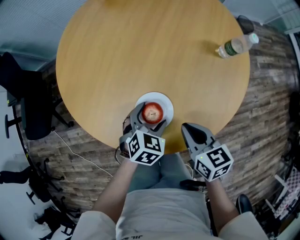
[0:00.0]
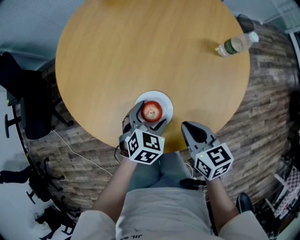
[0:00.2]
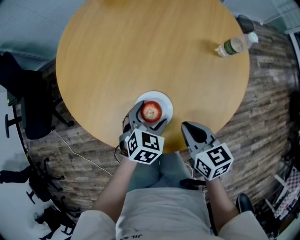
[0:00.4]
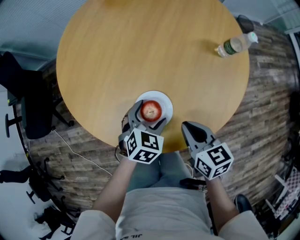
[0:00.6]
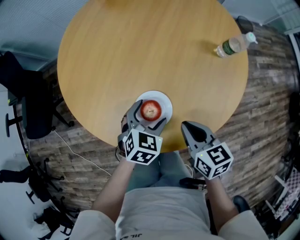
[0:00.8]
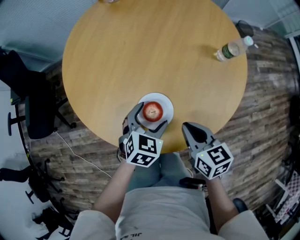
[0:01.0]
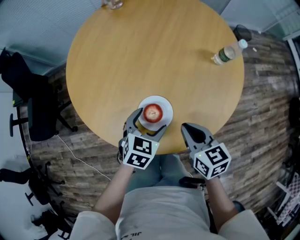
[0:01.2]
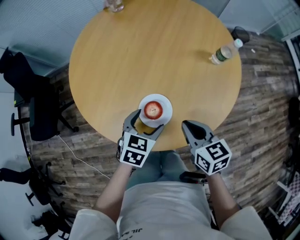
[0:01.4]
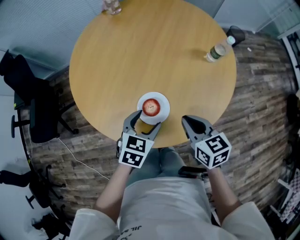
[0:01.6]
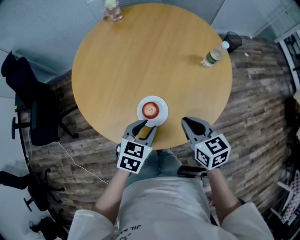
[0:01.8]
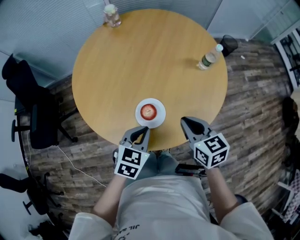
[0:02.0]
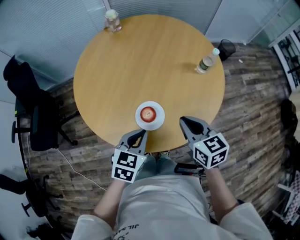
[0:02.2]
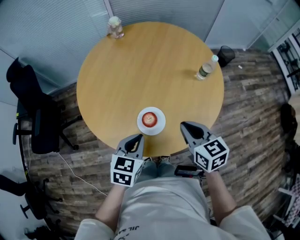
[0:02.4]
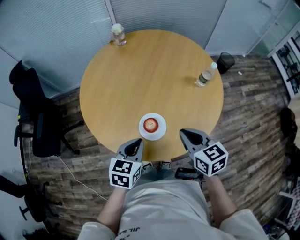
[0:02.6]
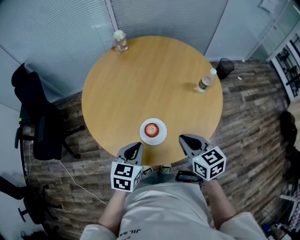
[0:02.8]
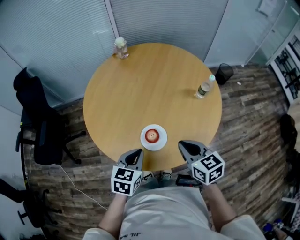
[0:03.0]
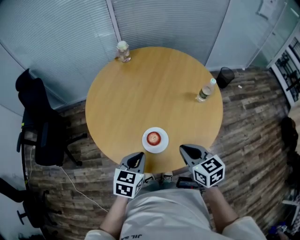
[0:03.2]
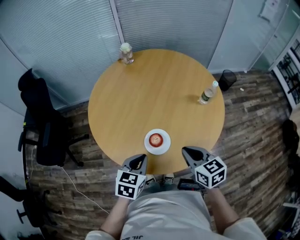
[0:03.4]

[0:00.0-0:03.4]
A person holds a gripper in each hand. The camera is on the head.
0:00.0 to 0:01.6: The right gripper travels upward by approximately 5 cm. The left gripper is displaced upward by about 10 cm.
0:01.6 to 0:03.4: The left gripper heads upward and backward, covering about 10 cm, and closes up. Meanwhile the right gripper travels upward by roughly 5 cm.

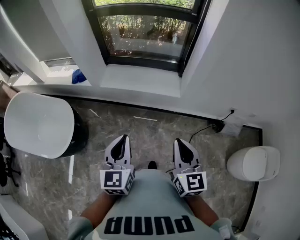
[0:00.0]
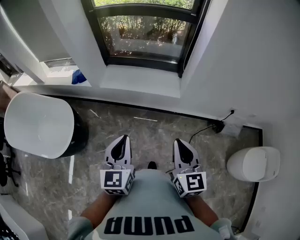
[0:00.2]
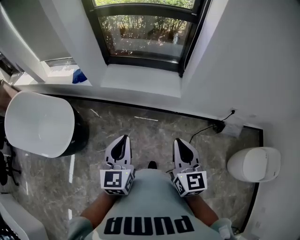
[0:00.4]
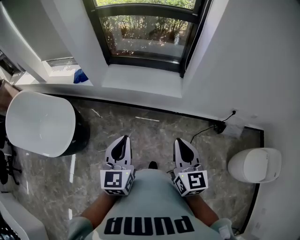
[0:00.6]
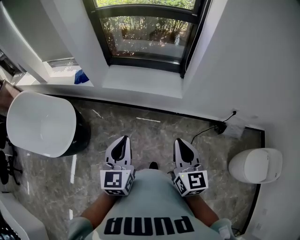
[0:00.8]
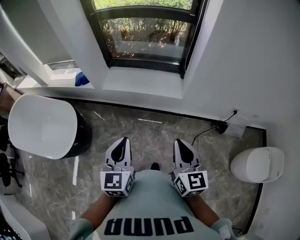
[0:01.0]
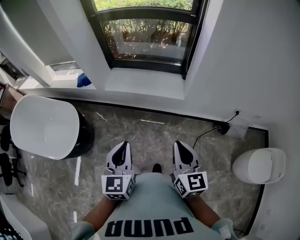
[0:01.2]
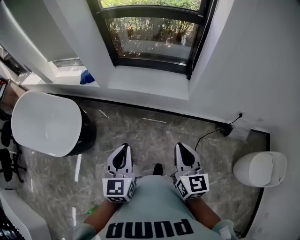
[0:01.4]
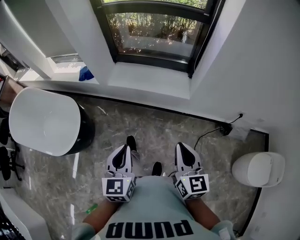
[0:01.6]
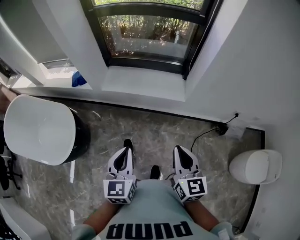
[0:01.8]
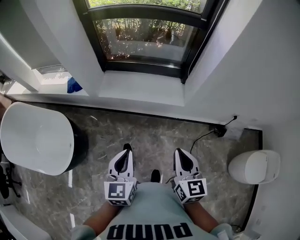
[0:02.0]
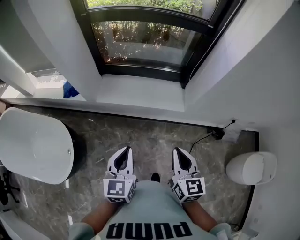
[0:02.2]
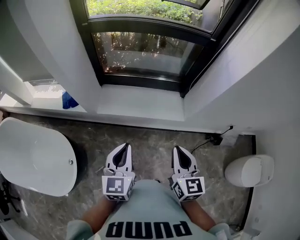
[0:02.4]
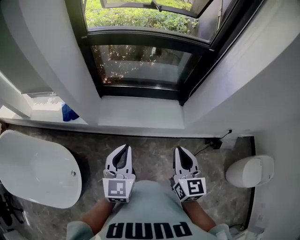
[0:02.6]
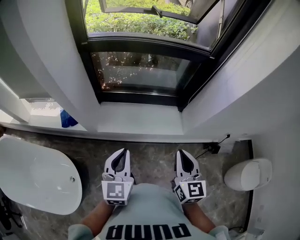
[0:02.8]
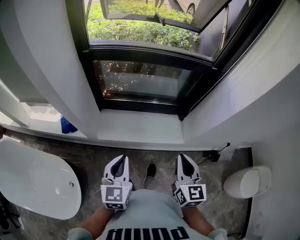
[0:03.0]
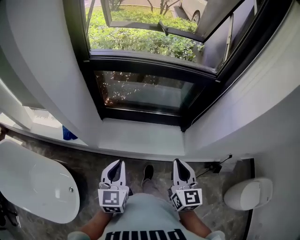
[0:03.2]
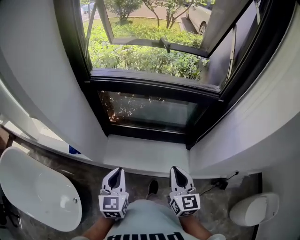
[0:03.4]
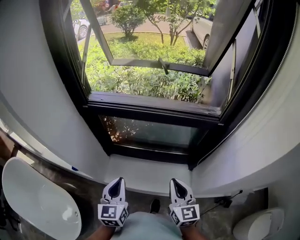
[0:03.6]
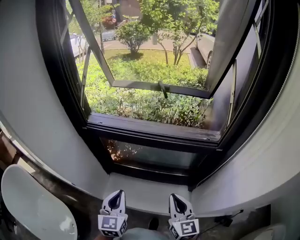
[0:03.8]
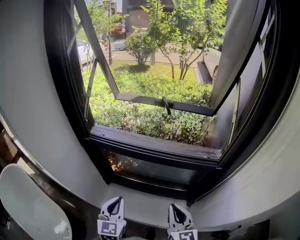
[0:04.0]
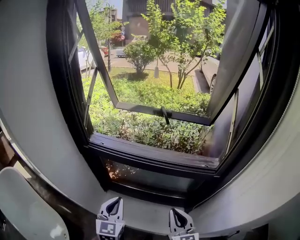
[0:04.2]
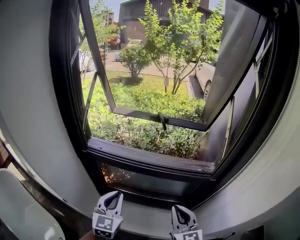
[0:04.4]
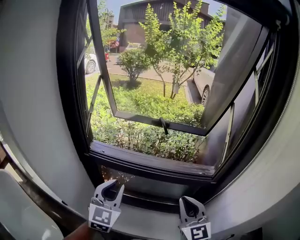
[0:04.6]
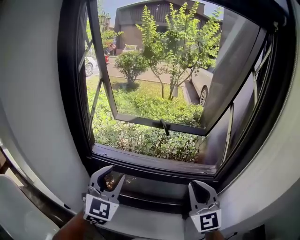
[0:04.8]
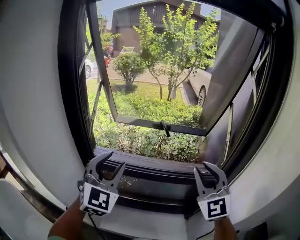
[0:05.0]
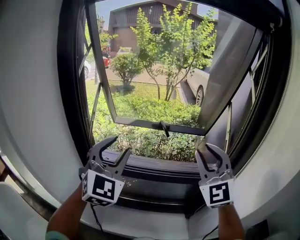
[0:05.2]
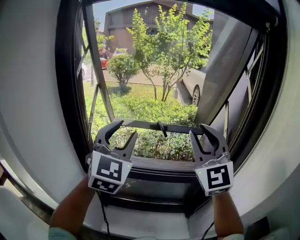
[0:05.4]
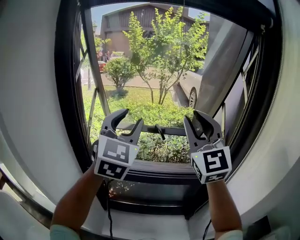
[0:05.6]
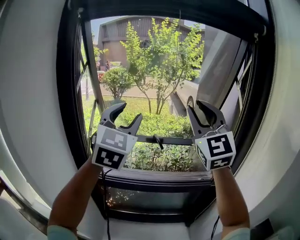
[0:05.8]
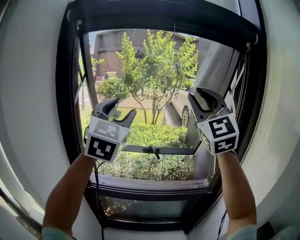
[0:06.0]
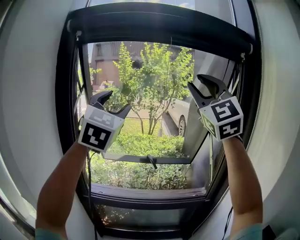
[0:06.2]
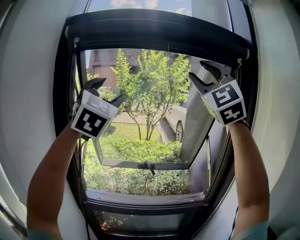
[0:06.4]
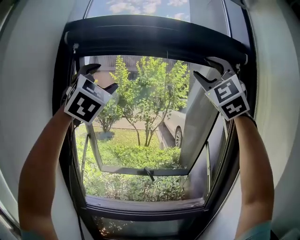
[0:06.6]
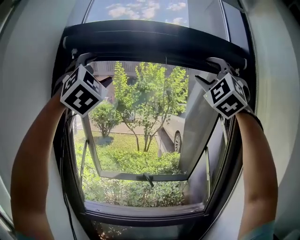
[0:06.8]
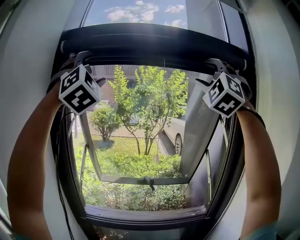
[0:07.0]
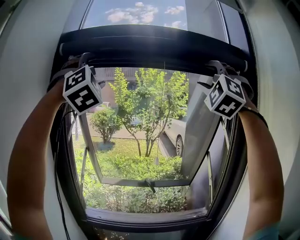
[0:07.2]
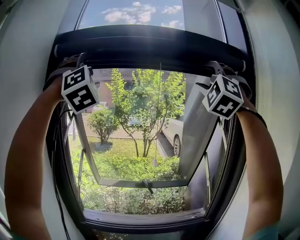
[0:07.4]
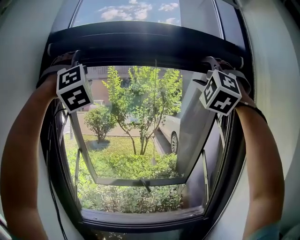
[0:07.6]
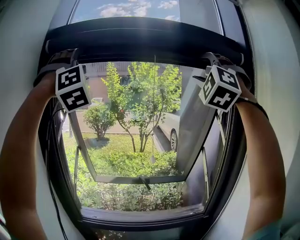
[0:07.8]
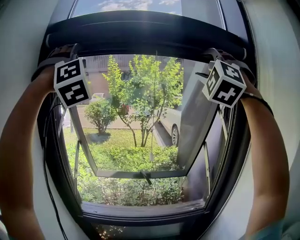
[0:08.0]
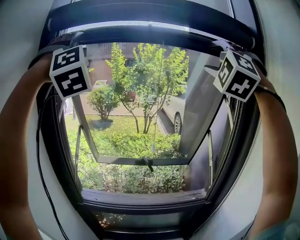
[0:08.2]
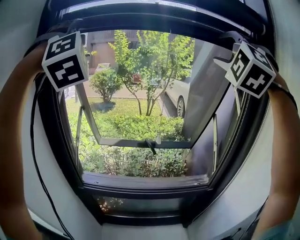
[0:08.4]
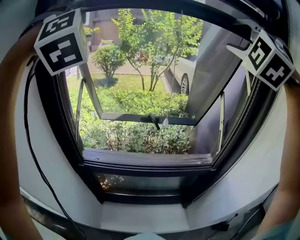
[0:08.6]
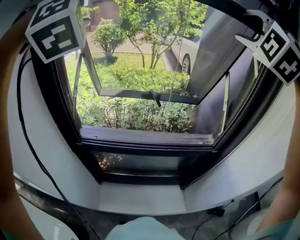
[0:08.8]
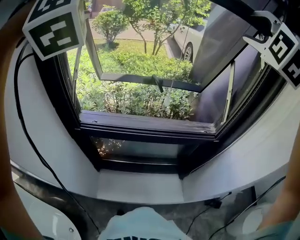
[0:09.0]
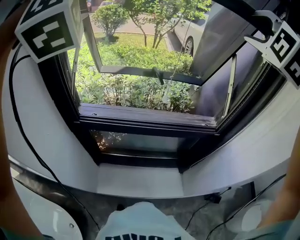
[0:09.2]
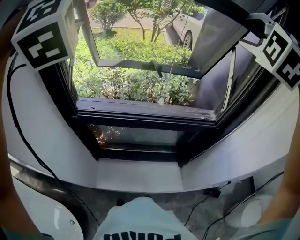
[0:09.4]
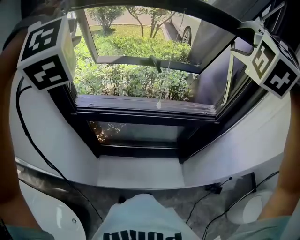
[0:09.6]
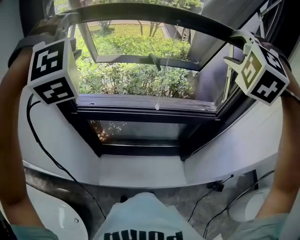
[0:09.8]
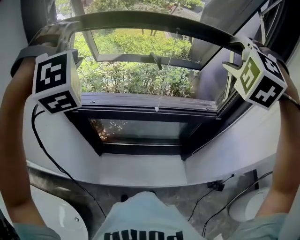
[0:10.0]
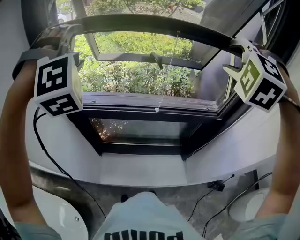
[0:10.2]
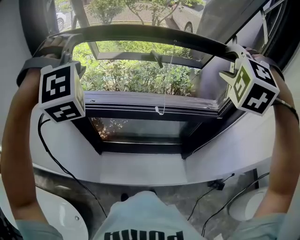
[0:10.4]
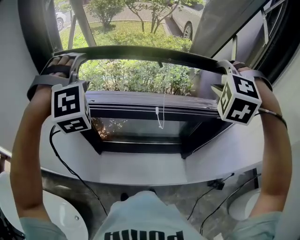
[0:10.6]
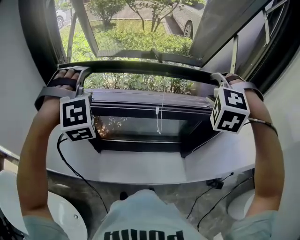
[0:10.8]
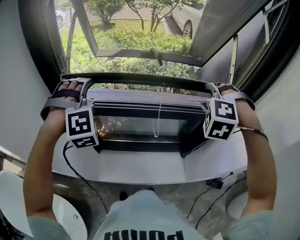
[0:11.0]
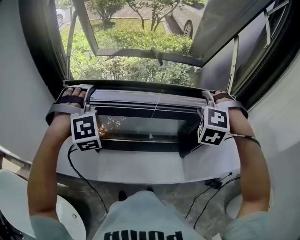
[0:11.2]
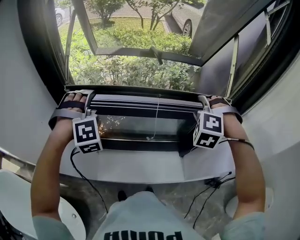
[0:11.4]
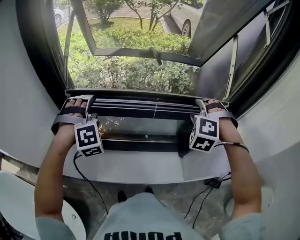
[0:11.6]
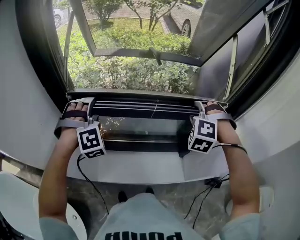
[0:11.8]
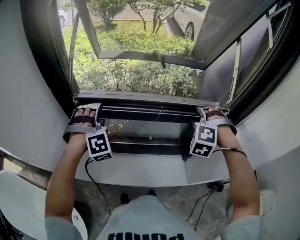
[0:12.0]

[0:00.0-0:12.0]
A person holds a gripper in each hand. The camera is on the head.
0:00.0 to 0:01.6: The grippers make only small movements.
0:01.6 to 0:03.0: Both grippers move forward and to the left, roughly 35 cm.
0:03.0 to 0:04.4: Both grippers travel together forward and upward, roughly 30 cm. The right gripper swivels about 30 degrees.
0:04.4 to 0:06.0: The grippers both shift upward by some 50 cm. The left gripper swivels approximately 30 degrees, and opens its fingers; the right gripper rotates some 40 degrees, and opens up.
0:06.0 to 0:07.6: Both grippers move upward, some 20 cm. The right gripper rotates around the line of its fingers by roughly 50 degrees, counterclockwise from behind, and opens. The left gripper rolls clockwise, seen from behind, by roughly 60 degrees, and opens its fingers.
0:07.6 to 0:09.0: The grippers both shift downward by approximately 20 cm. The right gripper changes its angle by roughly 30 degrees.
0:09.0 to 0:10.4: Both grippers travel together downward, roughly 25 cm. The right gripper turns by approximately 20 degrees. Meanwhile the left gripper turns by some 20 degrees.
0:10.4 to 0:12.0: The grippers both shift downward by roughly 25 cm.

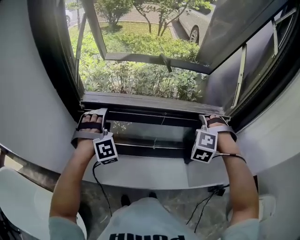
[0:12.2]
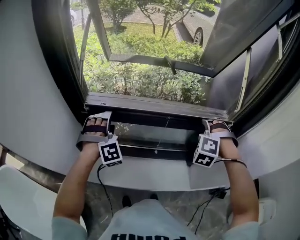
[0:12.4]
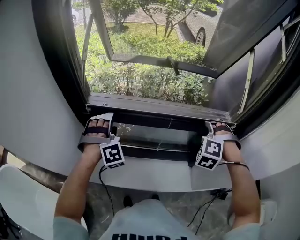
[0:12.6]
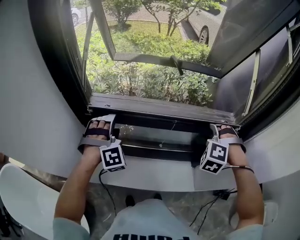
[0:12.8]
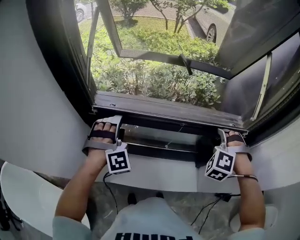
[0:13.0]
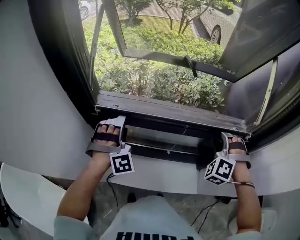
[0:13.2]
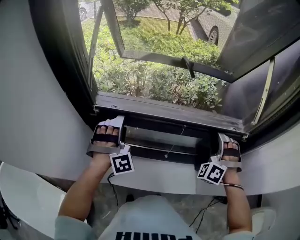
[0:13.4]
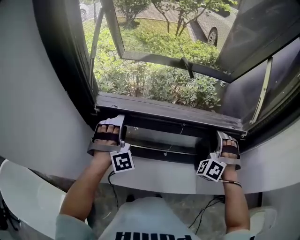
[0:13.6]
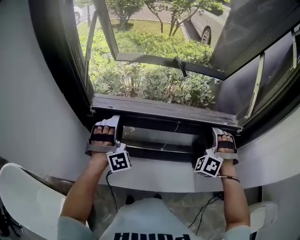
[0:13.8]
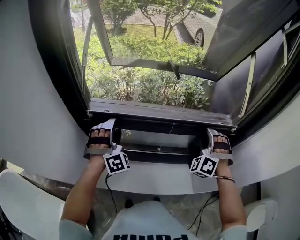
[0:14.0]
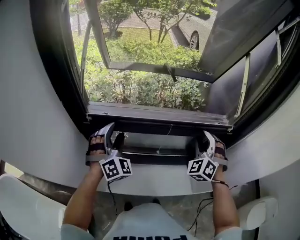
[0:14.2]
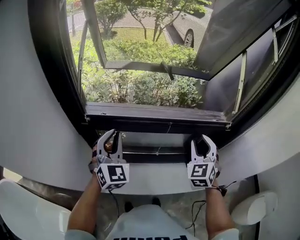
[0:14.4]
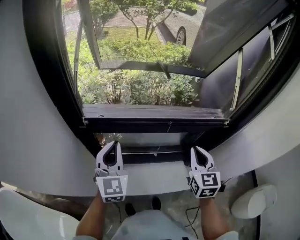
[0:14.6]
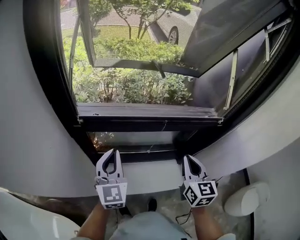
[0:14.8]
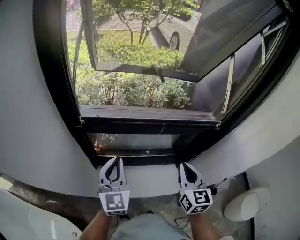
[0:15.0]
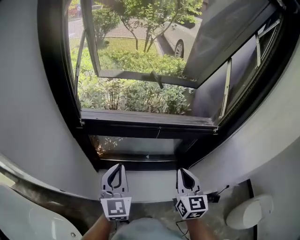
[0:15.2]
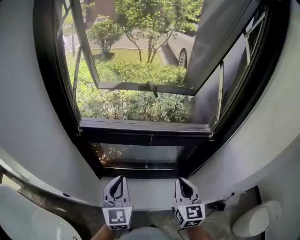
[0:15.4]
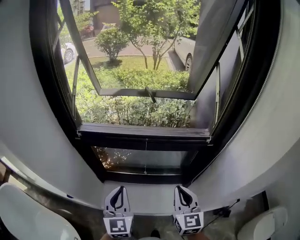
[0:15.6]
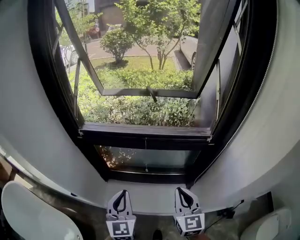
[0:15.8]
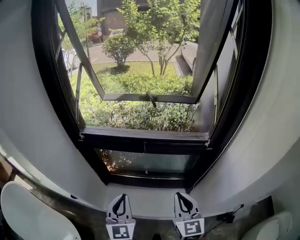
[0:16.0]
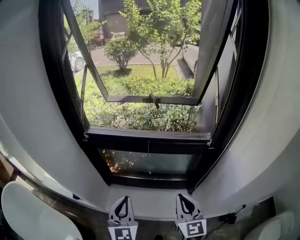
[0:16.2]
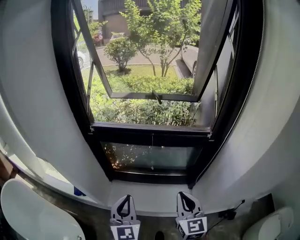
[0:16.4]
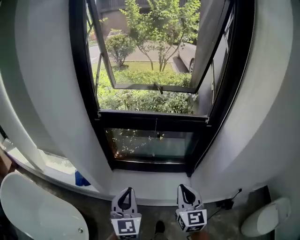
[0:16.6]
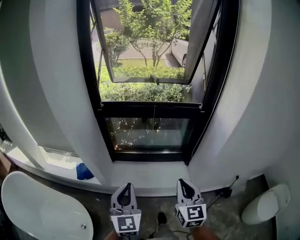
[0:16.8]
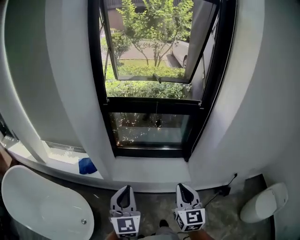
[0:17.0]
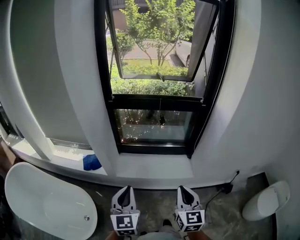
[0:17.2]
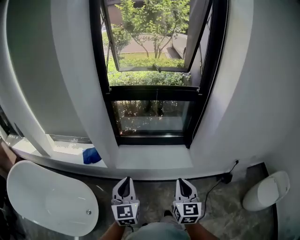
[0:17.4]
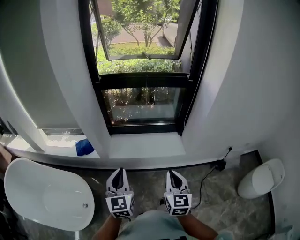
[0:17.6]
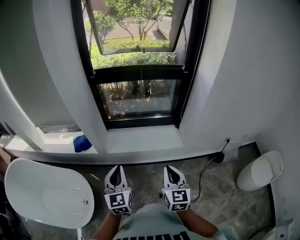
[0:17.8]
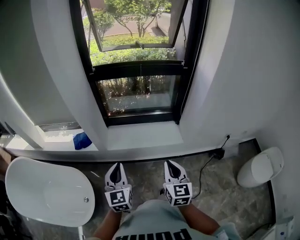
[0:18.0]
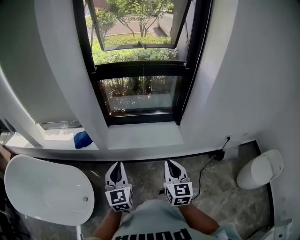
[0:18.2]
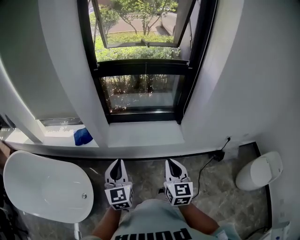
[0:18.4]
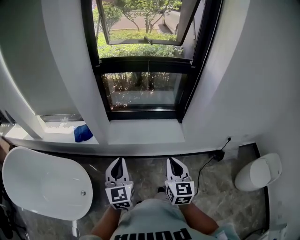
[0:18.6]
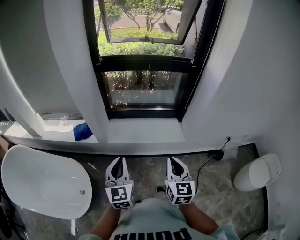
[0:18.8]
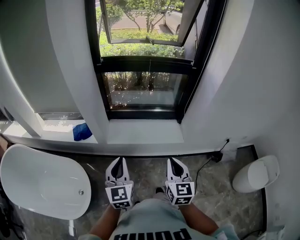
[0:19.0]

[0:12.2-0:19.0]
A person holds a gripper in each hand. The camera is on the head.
0:12.2 to 0:13.6: The right gripper changes its angle by roughly 30 degrees.
0:13.6 to 0:15.0: The left gripper travels backward by some 15 cm, rolls counterclockwise, seen from behind, by approximately 80 degrees, and closes. Meanwhile the right gripper heads backward and to the left, covering about 20 cm, rotates around the line of its fingers by some 90 degrees, clockwise from behind, and closes up.
0:15.0 to 0:16.2: The right gripper heads backward and to the right, covering roughly 10 cm, while the left gripper shifts about 20 cm backward and to the right.
0:16.2 to 0:17.6: Both grippers move backward, approximately 35 cm.
0:17.6 to 0:19.0: The grippers move only a little.

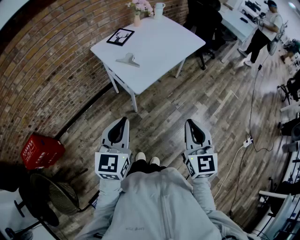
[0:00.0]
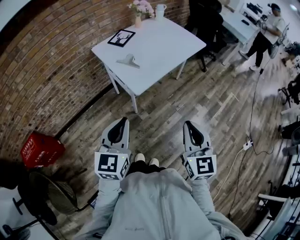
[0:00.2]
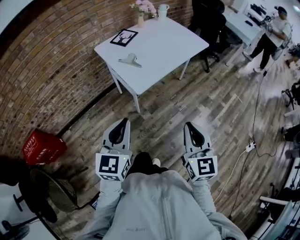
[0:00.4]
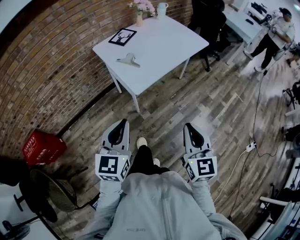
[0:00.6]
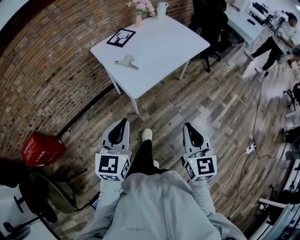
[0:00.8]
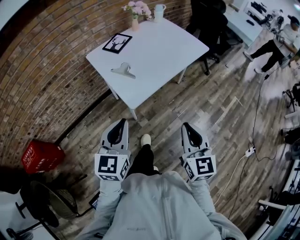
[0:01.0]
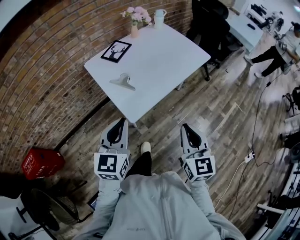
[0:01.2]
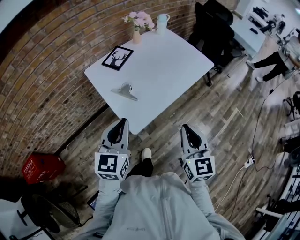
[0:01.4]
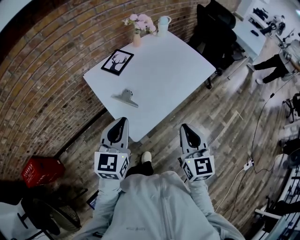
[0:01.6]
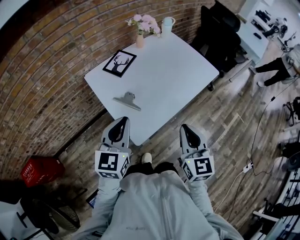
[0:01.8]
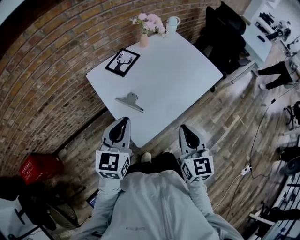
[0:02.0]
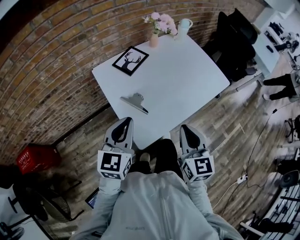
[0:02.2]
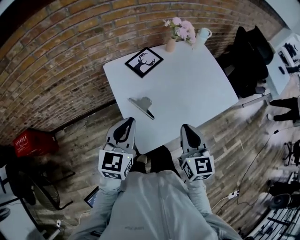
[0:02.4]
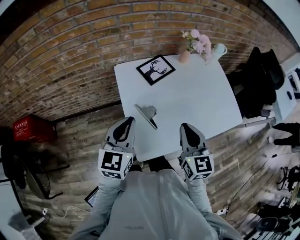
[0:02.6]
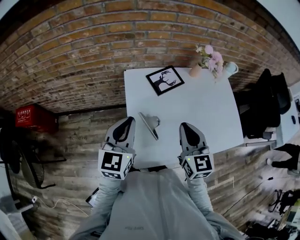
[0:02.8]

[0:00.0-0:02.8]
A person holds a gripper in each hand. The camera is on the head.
0:00.0 to 0:01.4: Both grippers travel together forward, approximately 20 cm.
0:01.4 to 0:02.8: The left gripper shifts by some 20 cm, and turns by about 30 degrees, while the right gripper ends up roughly 30 cm from where it was, and swivels approximately 30 degrees.
